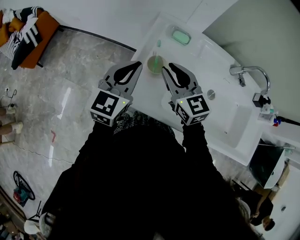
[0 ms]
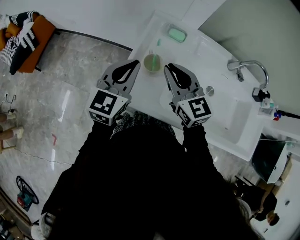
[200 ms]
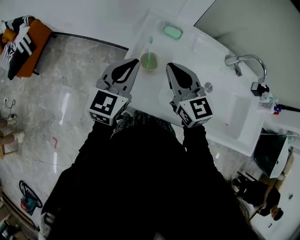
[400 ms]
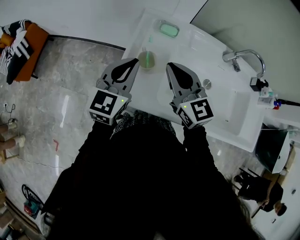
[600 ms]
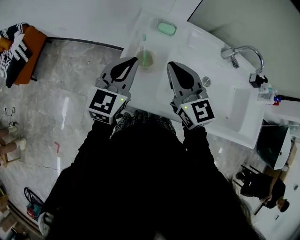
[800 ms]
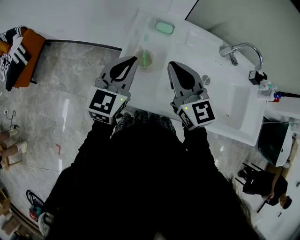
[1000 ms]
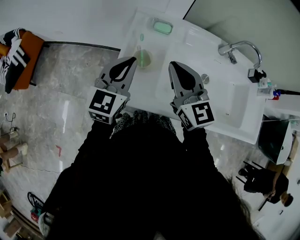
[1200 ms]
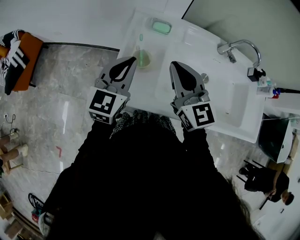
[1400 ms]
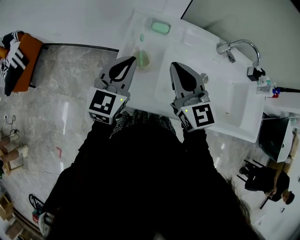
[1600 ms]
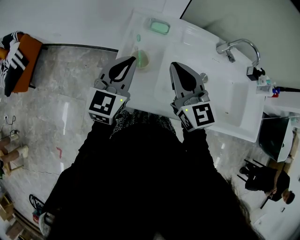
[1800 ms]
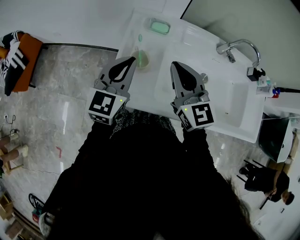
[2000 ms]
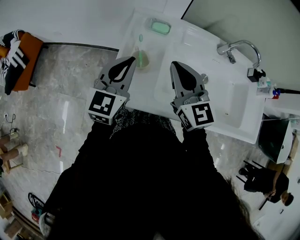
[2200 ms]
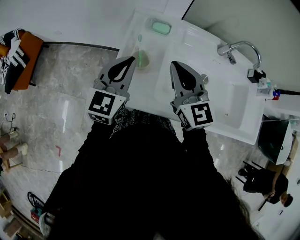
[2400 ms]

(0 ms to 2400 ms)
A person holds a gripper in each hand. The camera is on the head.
0 ms - 1200 ms: The right gripper travels upward and to the right by approximately 10 cm, and closes up.
1200 ms - 2400 ms: The two grippers keep their place.

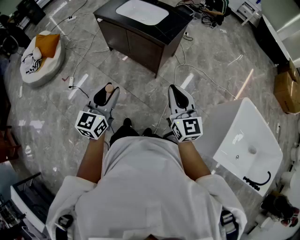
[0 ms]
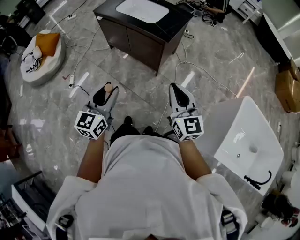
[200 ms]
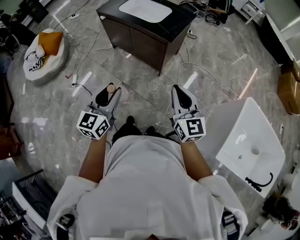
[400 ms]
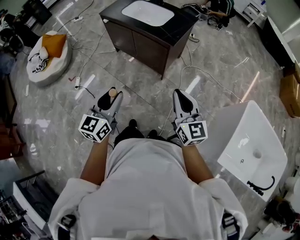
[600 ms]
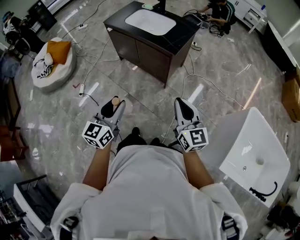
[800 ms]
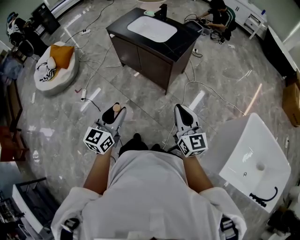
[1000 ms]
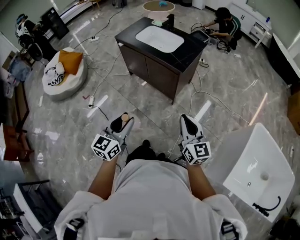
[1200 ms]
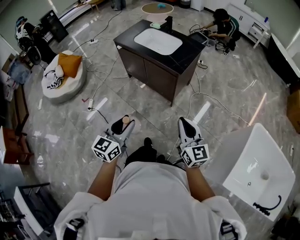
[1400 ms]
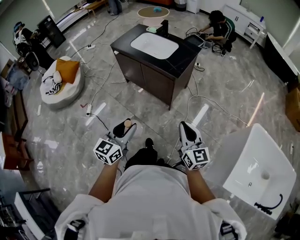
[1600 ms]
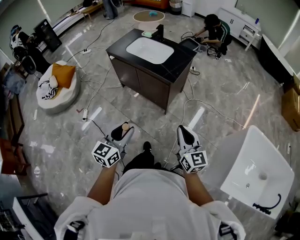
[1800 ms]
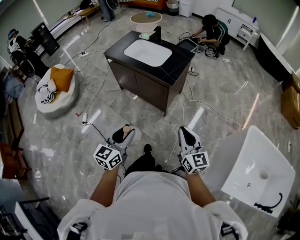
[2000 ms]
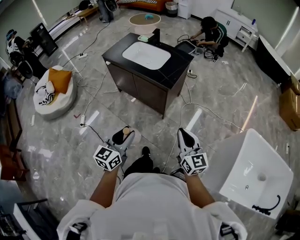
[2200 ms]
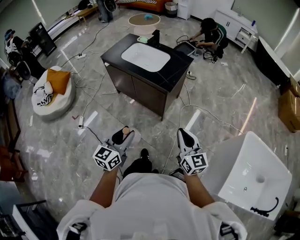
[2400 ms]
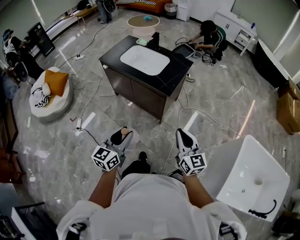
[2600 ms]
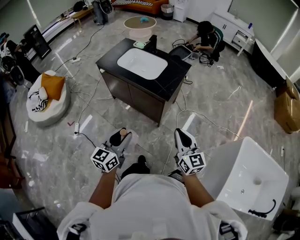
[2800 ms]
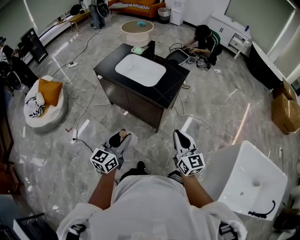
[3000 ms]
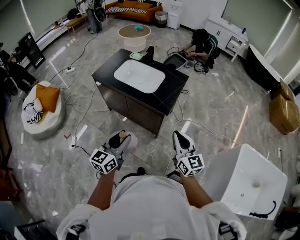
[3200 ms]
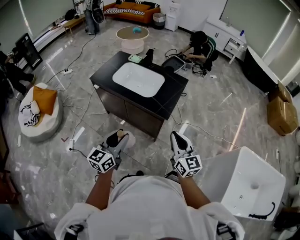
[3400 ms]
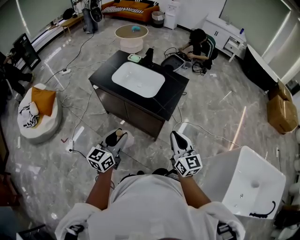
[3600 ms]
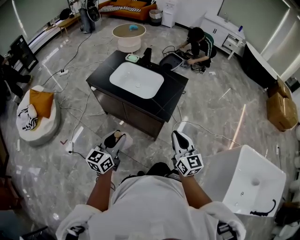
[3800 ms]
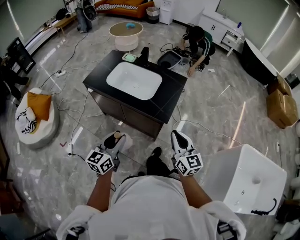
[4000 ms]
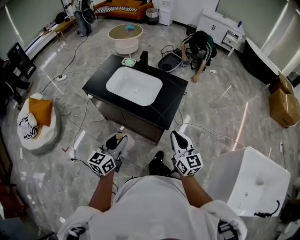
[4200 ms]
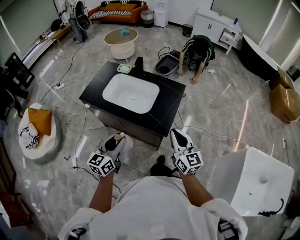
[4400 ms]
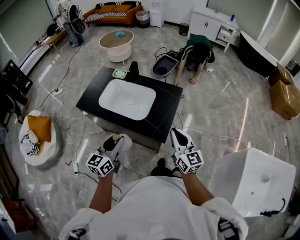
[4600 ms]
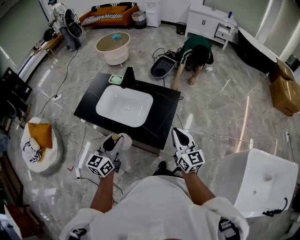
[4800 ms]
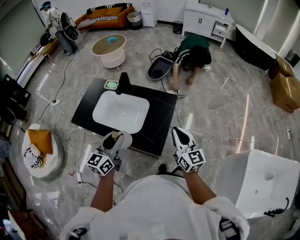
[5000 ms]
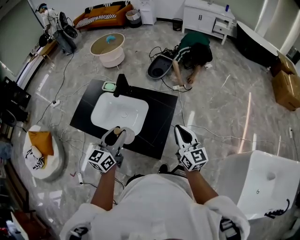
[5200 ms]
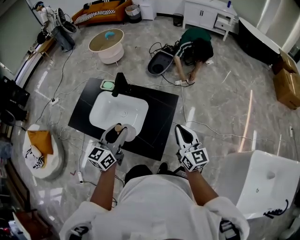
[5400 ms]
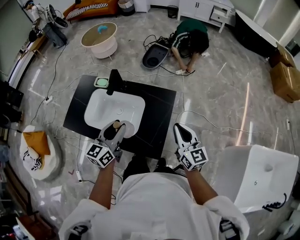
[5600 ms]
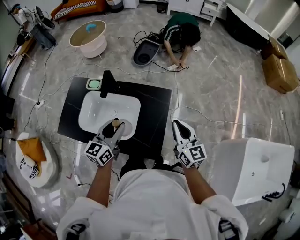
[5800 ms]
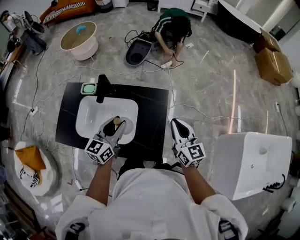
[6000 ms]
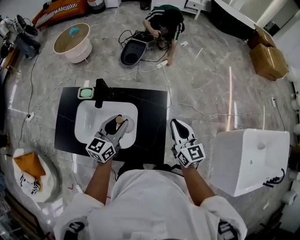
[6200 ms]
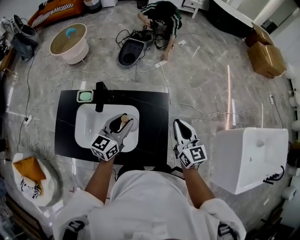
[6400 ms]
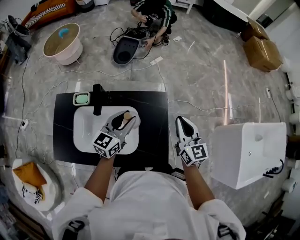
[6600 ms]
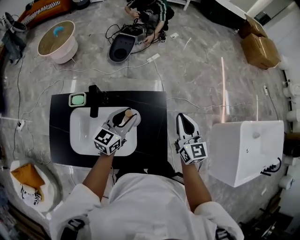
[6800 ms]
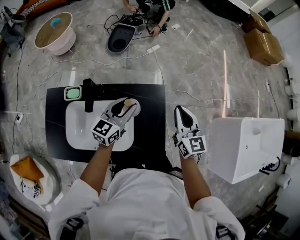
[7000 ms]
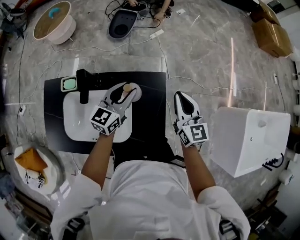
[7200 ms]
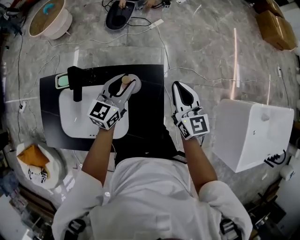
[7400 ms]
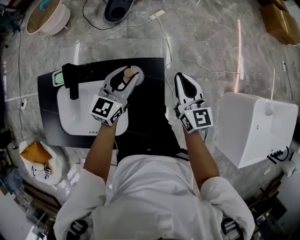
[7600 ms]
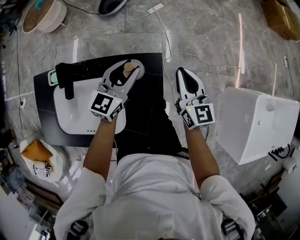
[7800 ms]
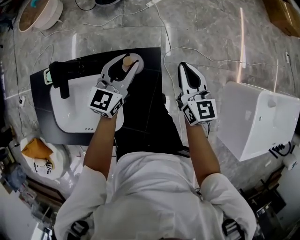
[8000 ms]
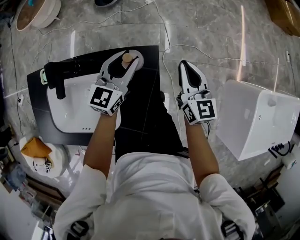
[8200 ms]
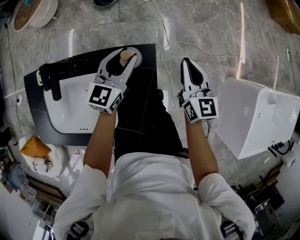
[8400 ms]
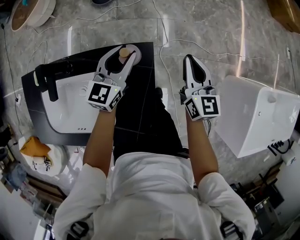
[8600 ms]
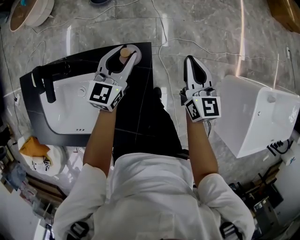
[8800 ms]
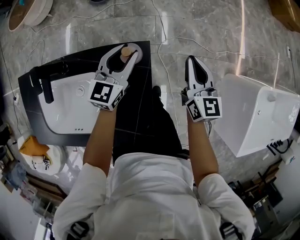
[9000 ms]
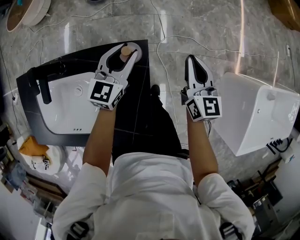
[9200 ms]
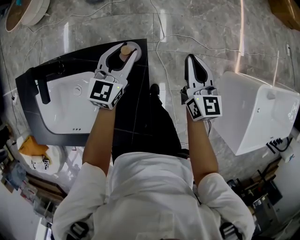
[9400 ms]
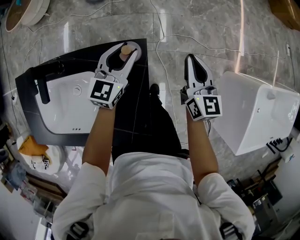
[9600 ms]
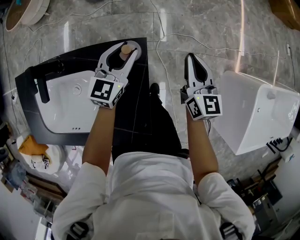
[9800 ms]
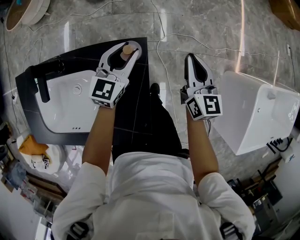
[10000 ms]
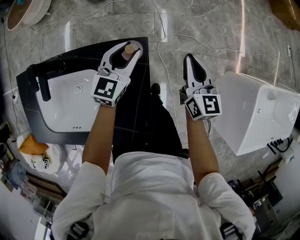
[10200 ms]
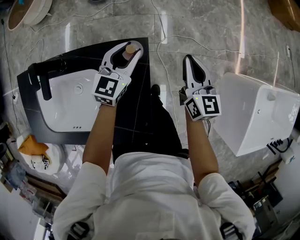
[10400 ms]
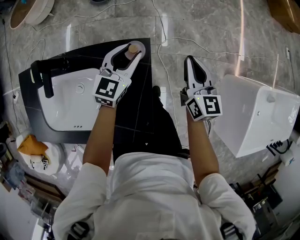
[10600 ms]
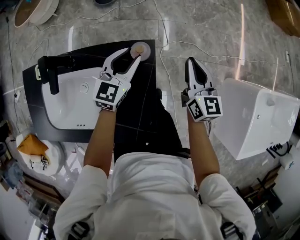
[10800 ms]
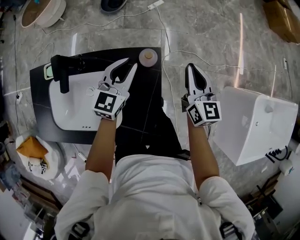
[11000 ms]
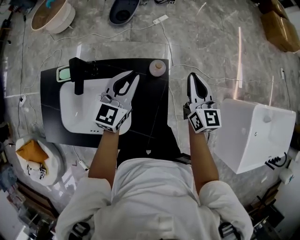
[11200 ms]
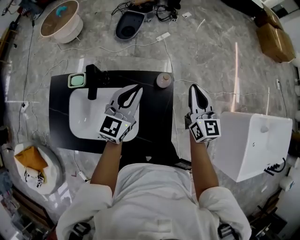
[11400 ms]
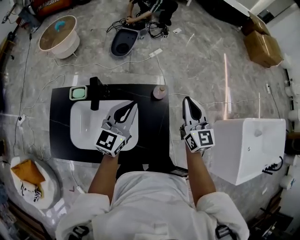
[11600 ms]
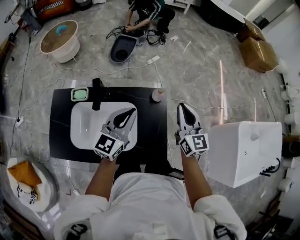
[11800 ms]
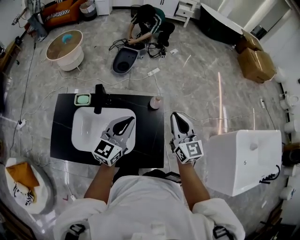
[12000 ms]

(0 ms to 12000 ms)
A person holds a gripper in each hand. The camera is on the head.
0 ms - 1600 ms: The grippers stay close to where they were, moving slightly.
1600 ms - 3000 ms: Both grippers travel together forward, roughly 20 cm.
3000 ms - 4400 ms: The grippers both shift forward by about 25 cm.
4400 ms - 6000 ms: Both grippers move forward, about 30 cm.
6000 ms - 7600 ms: The grippers both shift forward and downward by approximately 20 cm.
7600 ms - 9000 ms: The left gripper is displaced downward, to the right and forward by approximately 10 cm, while the right gripper heads to the right and downward, covering roughly 10 cm.
9000 ms - 10400 ms: The grippers stay close to where they were, moving slightly.
10400 ms - 12000 ms: Both grippers travel together upward, backward and to the left, approximately 35 cm. The right gripper rotates about 20 degrees; the left gripper closes.

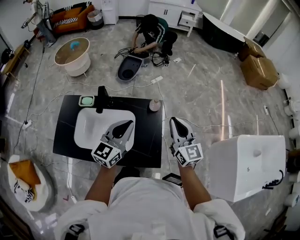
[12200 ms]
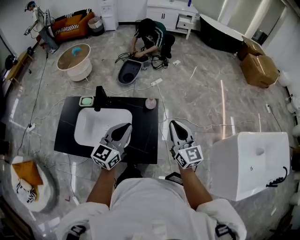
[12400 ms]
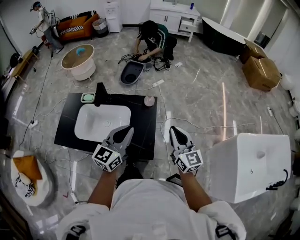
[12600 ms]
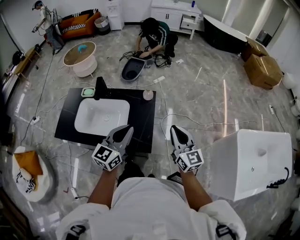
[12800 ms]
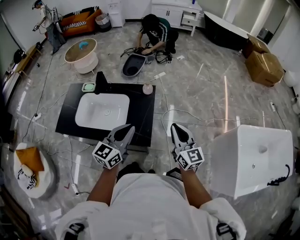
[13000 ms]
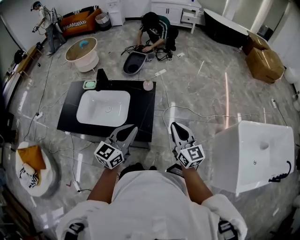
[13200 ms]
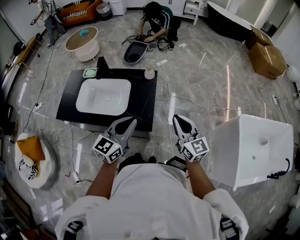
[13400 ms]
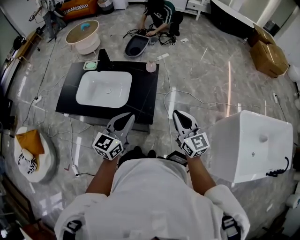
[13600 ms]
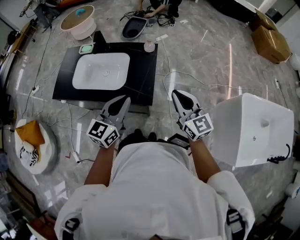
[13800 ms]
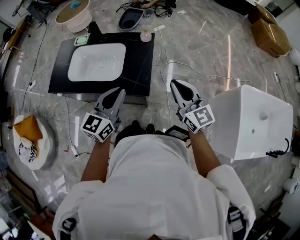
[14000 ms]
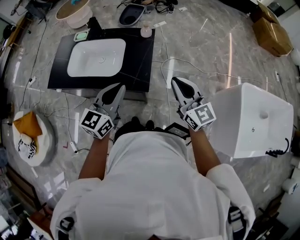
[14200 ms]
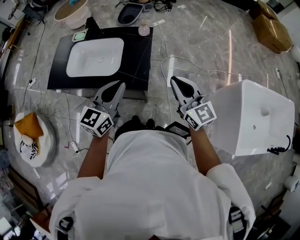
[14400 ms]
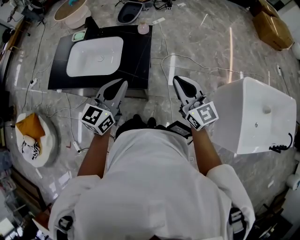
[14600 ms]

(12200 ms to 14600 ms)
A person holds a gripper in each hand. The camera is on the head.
12200 ms - 13400 ms: The grippers both shift backward and to the right by approximately 25 cm.
13400 ms - 14600 ms: The grippers stay close to where they were, moving slightly.

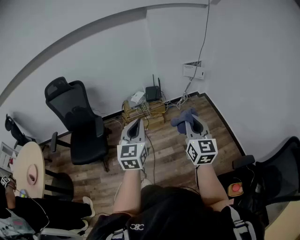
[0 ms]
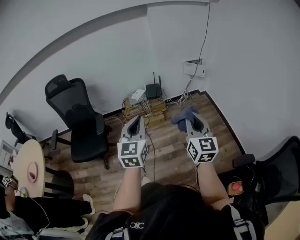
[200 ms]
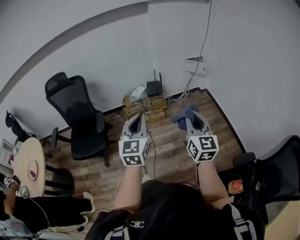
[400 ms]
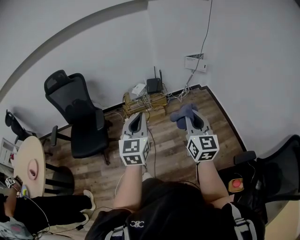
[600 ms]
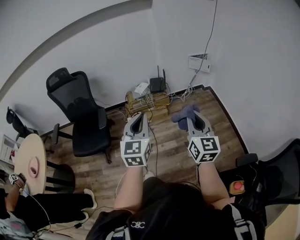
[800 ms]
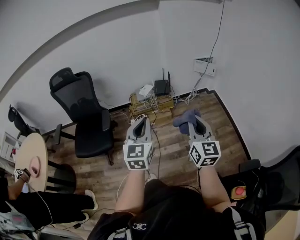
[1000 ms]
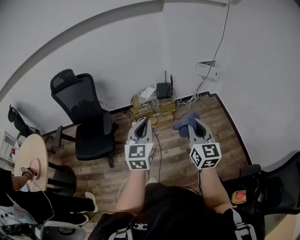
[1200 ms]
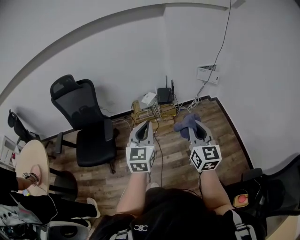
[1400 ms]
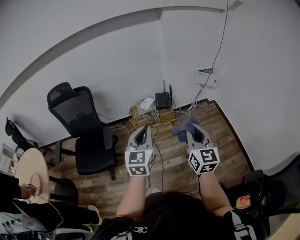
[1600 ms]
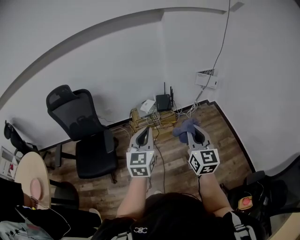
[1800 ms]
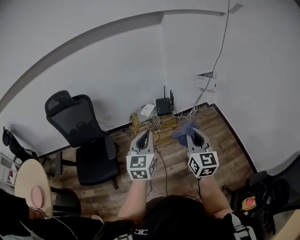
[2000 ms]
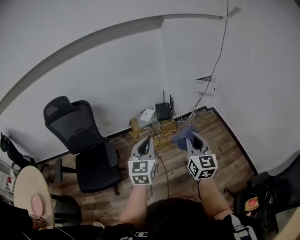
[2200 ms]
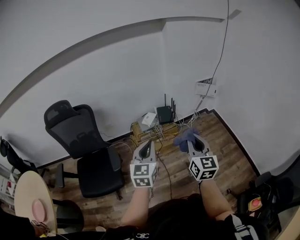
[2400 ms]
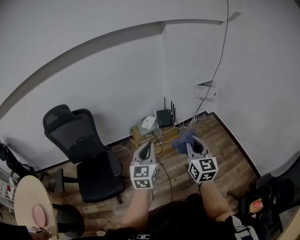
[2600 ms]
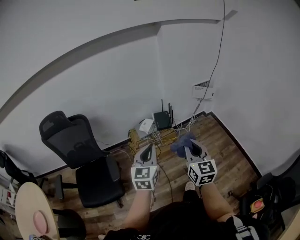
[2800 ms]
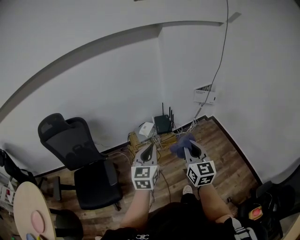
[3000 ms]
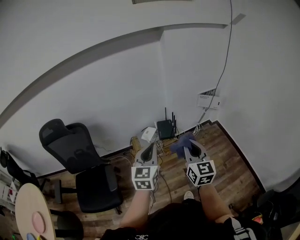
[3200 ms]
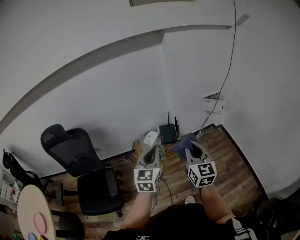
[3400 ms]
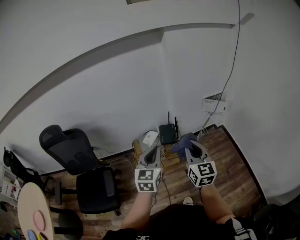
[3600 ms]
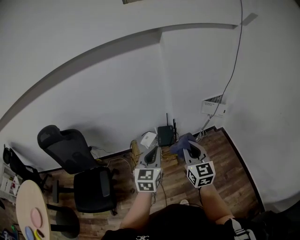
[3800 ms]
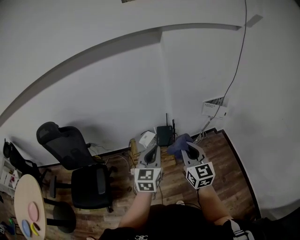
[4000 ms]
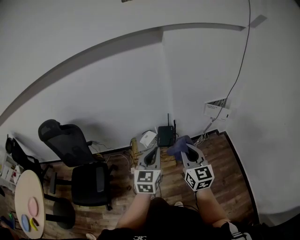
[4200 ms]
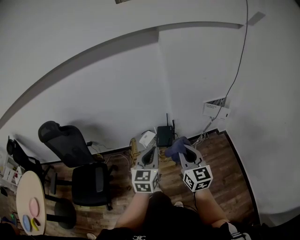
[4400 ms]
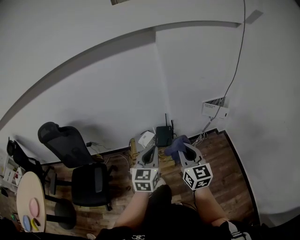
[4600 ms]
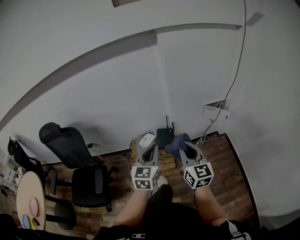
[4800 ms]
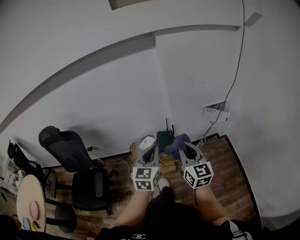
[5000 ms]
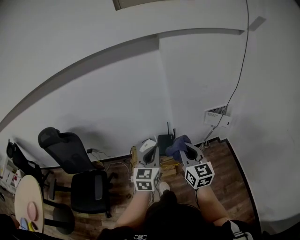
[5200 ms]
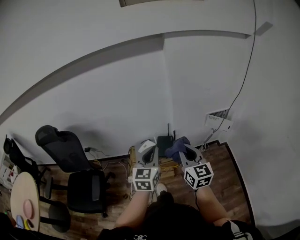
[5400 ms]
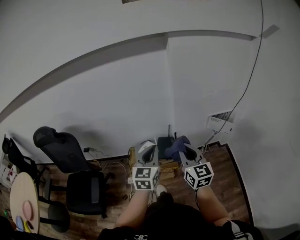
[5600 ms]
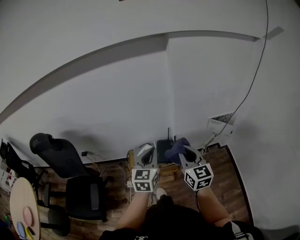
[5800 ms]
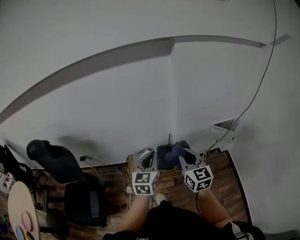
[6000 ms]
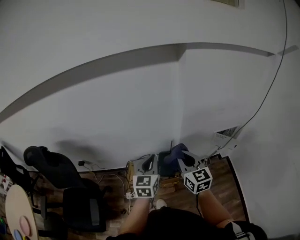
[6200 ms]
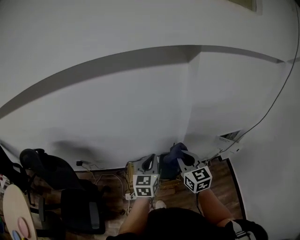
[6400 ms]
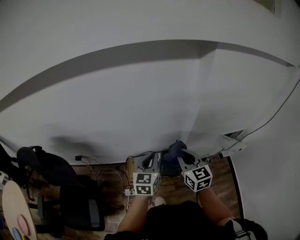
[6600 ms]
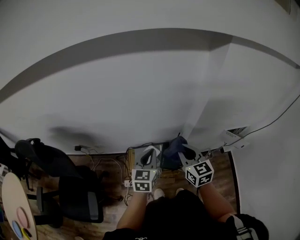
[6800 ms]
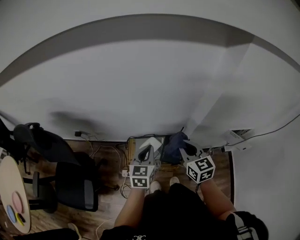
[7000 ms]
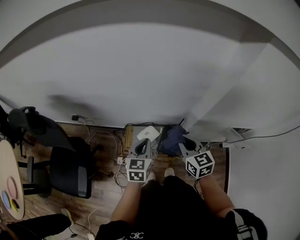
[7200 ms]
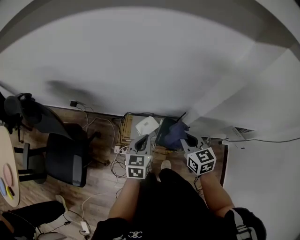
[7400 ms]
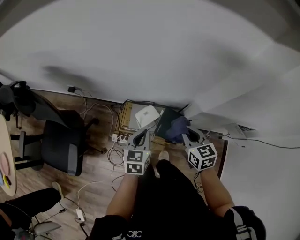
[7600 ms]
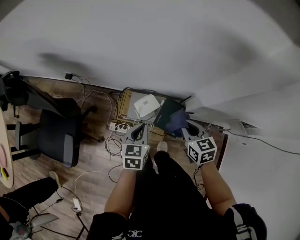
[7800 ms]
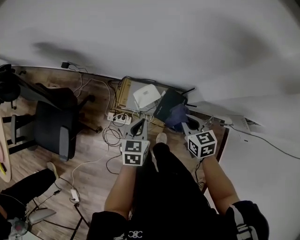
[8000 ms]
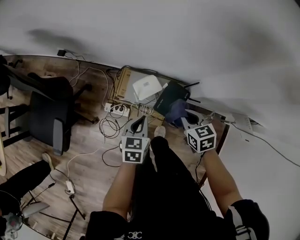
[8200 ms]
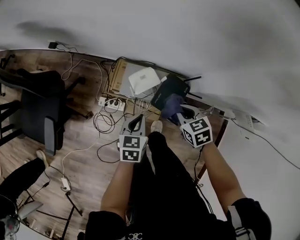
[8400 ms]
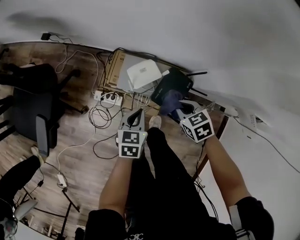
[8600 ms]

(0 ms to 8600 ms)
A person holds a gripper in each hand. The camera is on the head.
0 ms - 1400 ms: Both grippers move forward and to the left, about 10 cm.
1400 ms - 2800 ms: Both grippers move forward and to the left, approximately 20 cm.
2800 ms - 4400 ms: The two grippers go approximately 30 cm forward and to the right.
4400 ms - 5800 ms: The two grippers go roughly 15 cm forward.
5800 ms - 7200 ms: The two grippers go roughly 30 cm forward, downward and to the left. The left gripper swivels roughly 20 degrees, while the right gripper turns by some 30 degrees.
7200 ms - 8600 ms: The two grippers go roughly 35 cm downward. The right gripper points its fingers roughly 40 degrees further downward. The left gripper turns by some 30 degrees.
